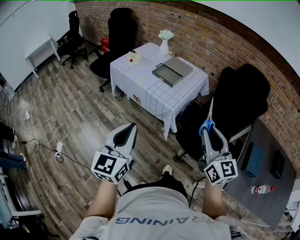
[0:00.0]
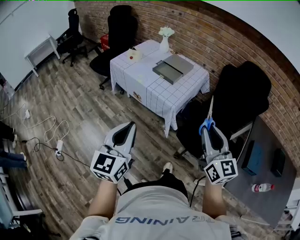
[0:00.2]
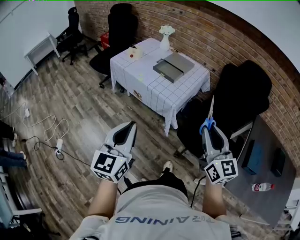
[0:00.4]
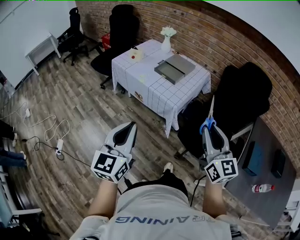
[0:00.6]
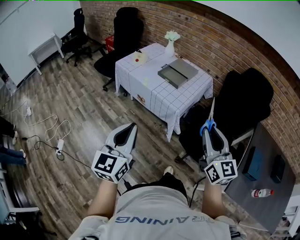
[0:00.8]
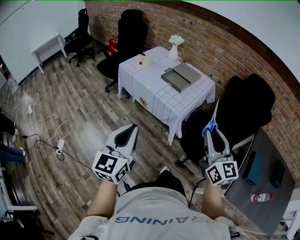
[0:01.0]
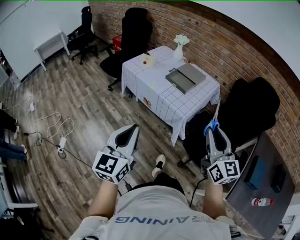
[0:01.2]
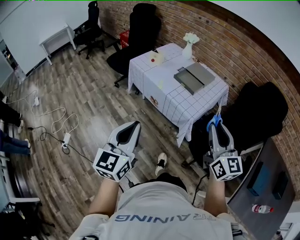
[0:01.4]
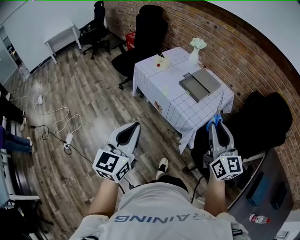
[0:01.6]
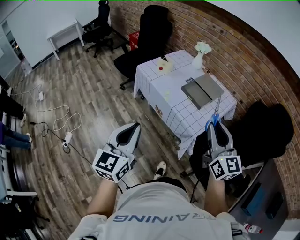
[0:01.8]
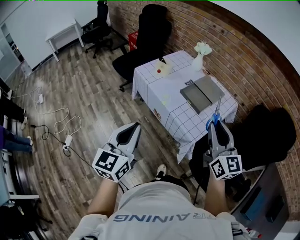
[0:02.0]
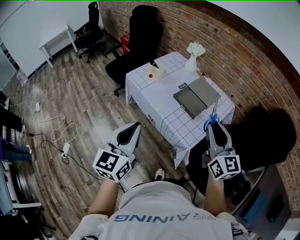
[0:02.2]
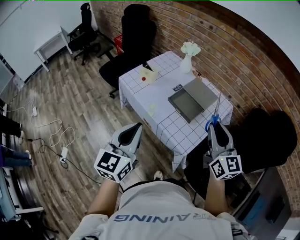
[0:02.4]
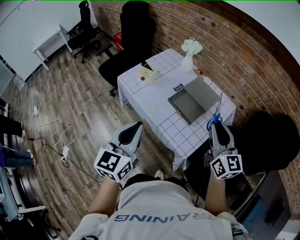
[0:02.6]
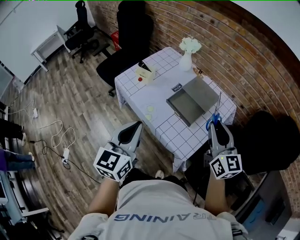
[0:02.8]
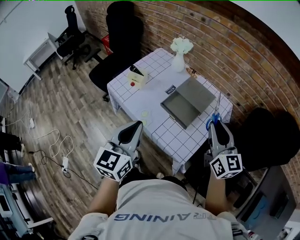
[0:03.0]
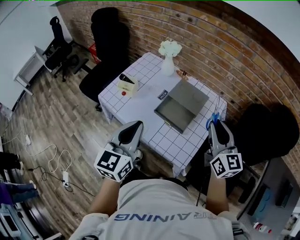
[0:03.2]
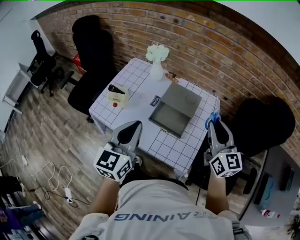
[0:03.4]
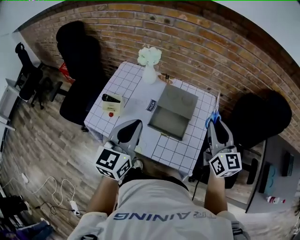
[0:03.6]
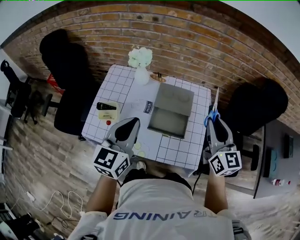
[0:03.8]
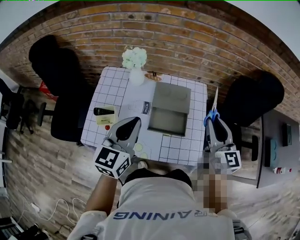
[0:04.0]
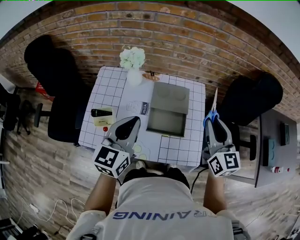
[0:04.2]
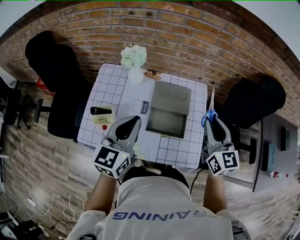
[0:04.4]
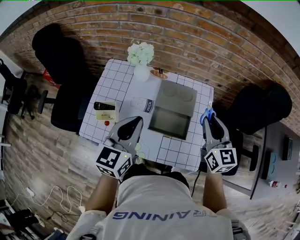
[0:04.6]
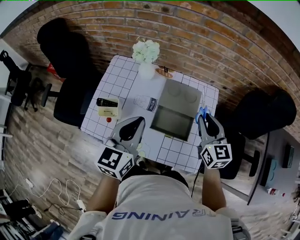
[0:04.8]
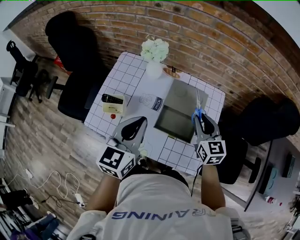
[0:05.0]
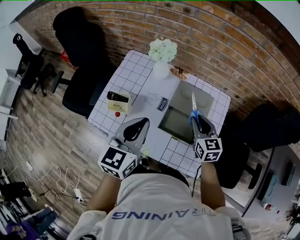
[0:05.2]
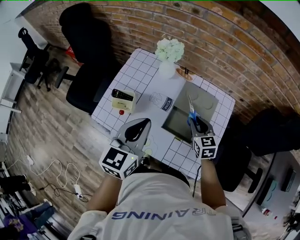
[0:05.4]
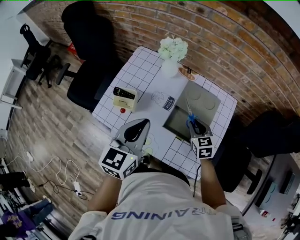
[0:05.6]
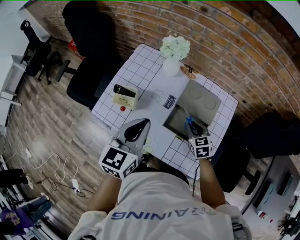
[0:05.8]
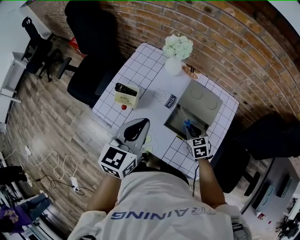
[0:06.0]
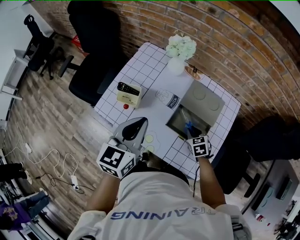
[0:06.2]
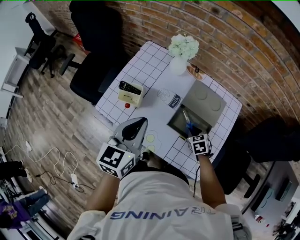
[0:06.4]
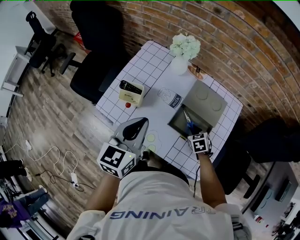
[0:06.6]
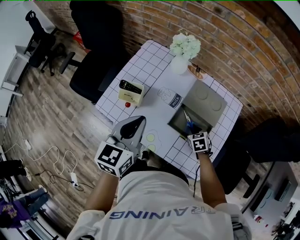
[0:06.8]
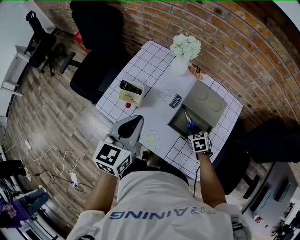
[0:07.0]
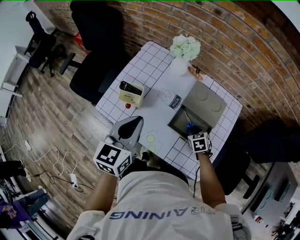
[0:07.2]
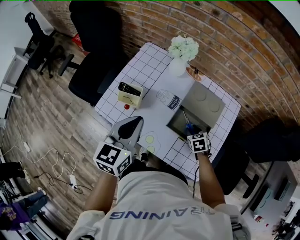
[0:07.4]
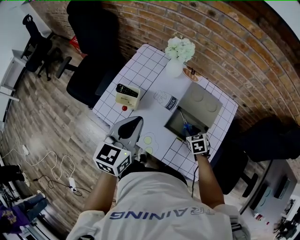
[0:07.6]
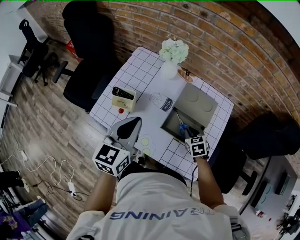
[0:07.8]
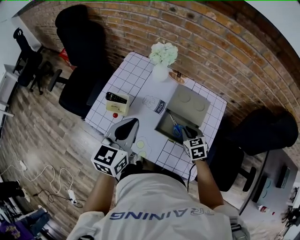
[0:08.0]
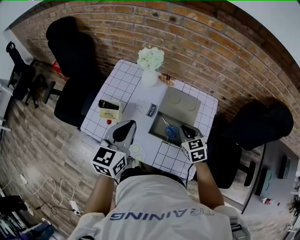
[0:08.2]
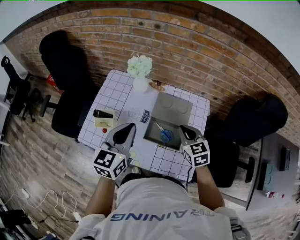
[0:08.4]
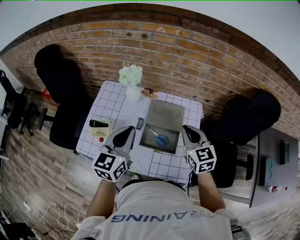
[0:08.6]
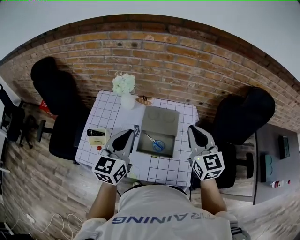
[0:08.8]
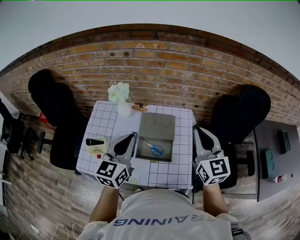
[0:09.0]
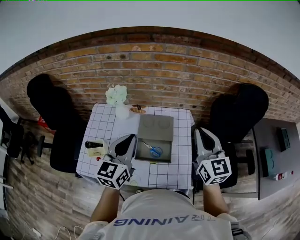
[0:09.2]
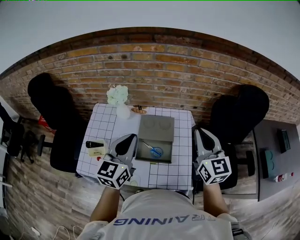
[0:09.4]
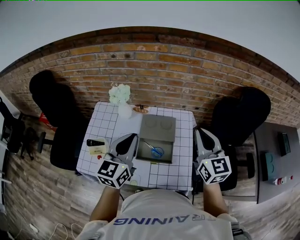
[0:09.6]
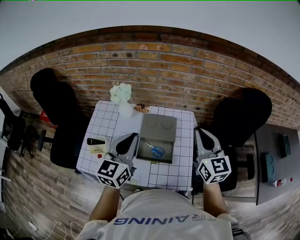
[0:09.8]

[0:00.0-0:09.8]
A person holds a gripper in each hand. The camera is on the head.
0:00.0 to 0:01.4: The left gripper is displaced to the left and forward by approximately 10 cm. The right gripper shifts about 10 cm forward and to the left.
0:01.4 to 0:02.8: Both grippers move forward, roughly 35 cm.
0:02.8 to 0:04.2: The left gripper shifts by roughly 30 cm, and turns by roughly 40 degrees; the right gripper moves approximately 10 cm, and changes its angle by approximately 40 degrees.
0:04.2 to 0:05.6: The right gripper heads downward, covering roughly 25 cm, and points its fingers some 30 degrees further downward.
0:05.6 to 0:07.0: The left gripper heads to the left, covering some 5 cm, while the right gripper travels downward by about 10 cm, and turns by approximately 20 degrees.
0:07.0 to 0:08.4: The right gripper travels upward by about 20 cm, turns by approximately 30 degrees, and closes up, while the left gripper goes roughly 10 cm to the right.
0:08.4 to 0:09.8: The left gripper shifts about 10 cm to the right and upward; the right gripper heads upward and to the right, covering about 20 cm, and changes its angle by approximately 30 degrees.

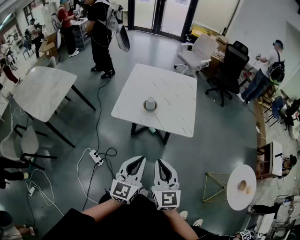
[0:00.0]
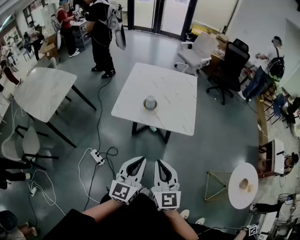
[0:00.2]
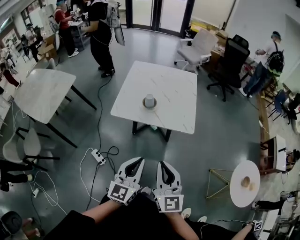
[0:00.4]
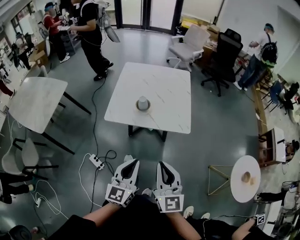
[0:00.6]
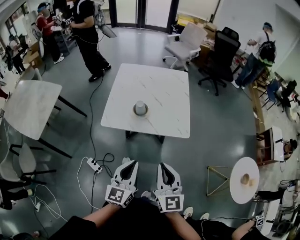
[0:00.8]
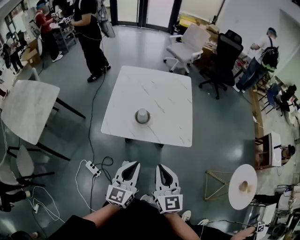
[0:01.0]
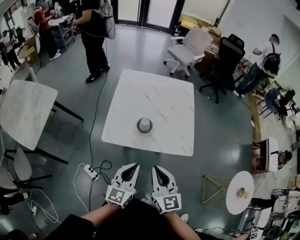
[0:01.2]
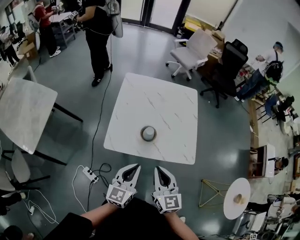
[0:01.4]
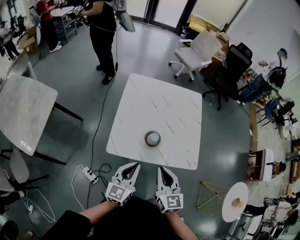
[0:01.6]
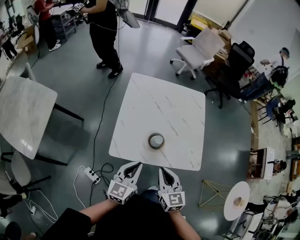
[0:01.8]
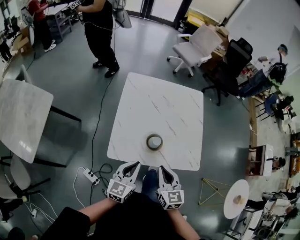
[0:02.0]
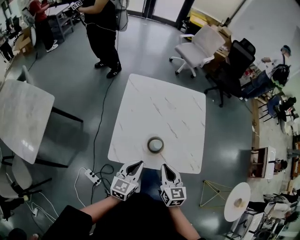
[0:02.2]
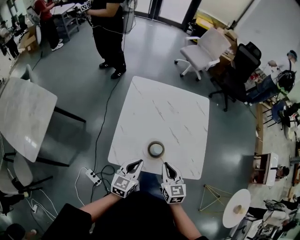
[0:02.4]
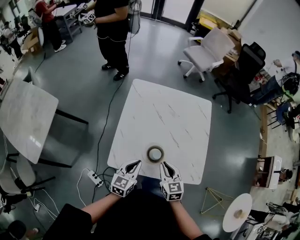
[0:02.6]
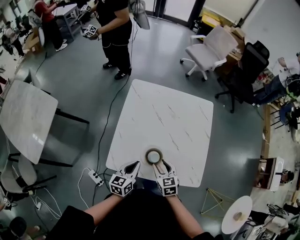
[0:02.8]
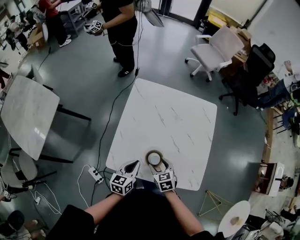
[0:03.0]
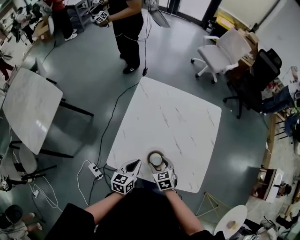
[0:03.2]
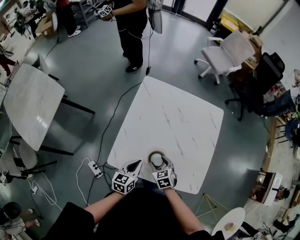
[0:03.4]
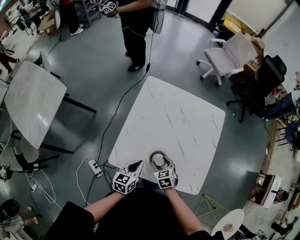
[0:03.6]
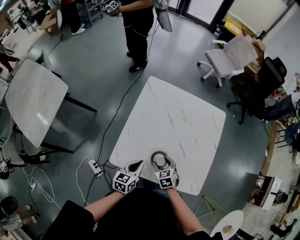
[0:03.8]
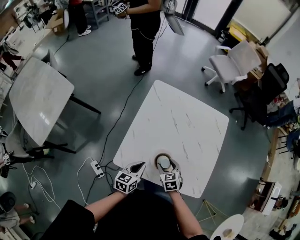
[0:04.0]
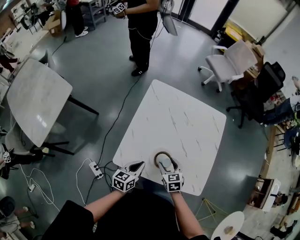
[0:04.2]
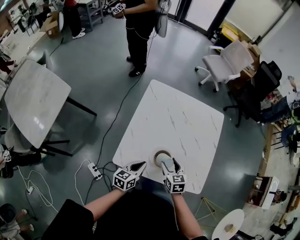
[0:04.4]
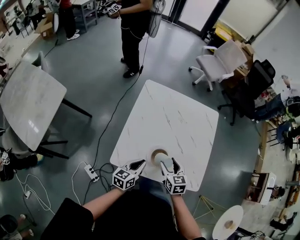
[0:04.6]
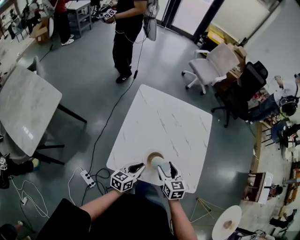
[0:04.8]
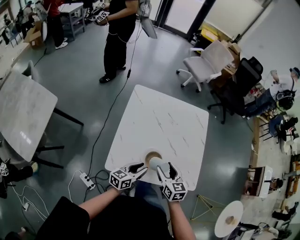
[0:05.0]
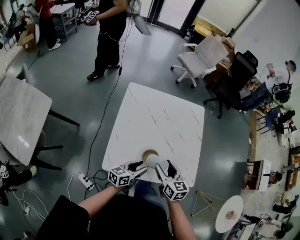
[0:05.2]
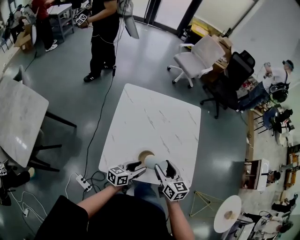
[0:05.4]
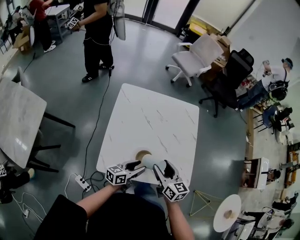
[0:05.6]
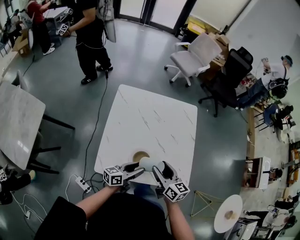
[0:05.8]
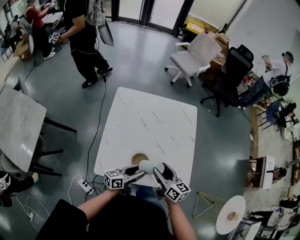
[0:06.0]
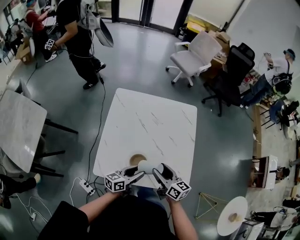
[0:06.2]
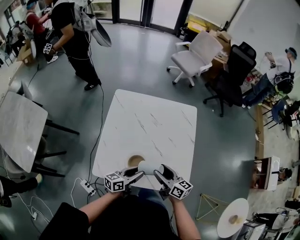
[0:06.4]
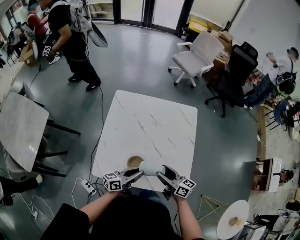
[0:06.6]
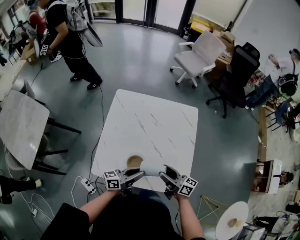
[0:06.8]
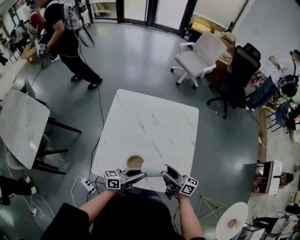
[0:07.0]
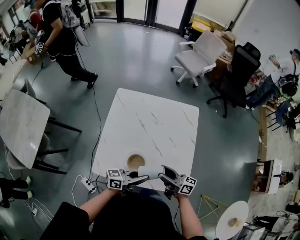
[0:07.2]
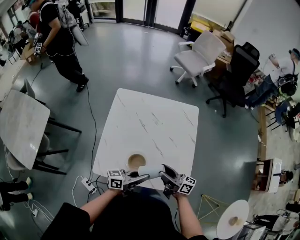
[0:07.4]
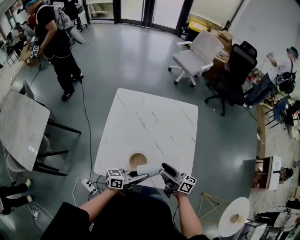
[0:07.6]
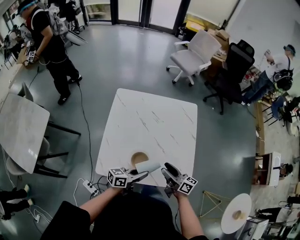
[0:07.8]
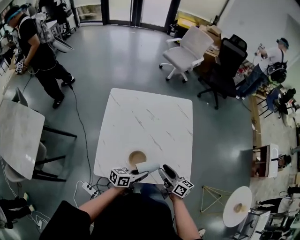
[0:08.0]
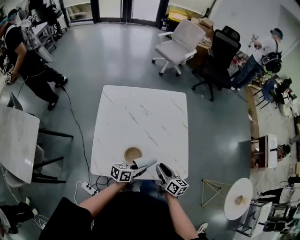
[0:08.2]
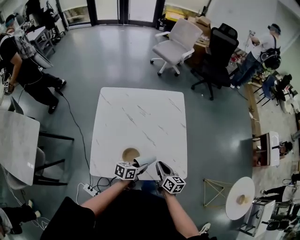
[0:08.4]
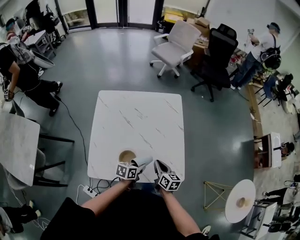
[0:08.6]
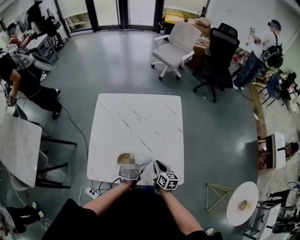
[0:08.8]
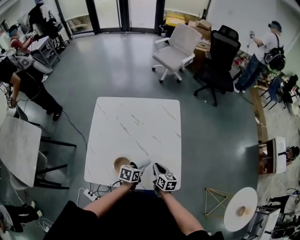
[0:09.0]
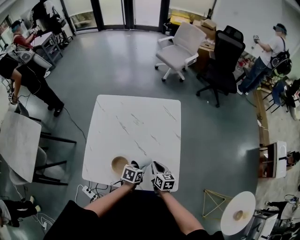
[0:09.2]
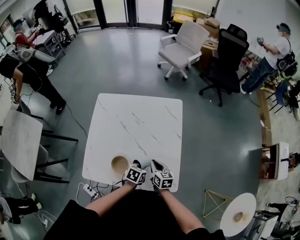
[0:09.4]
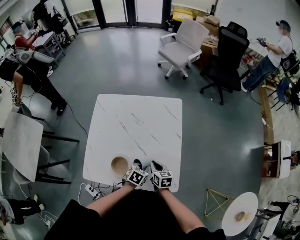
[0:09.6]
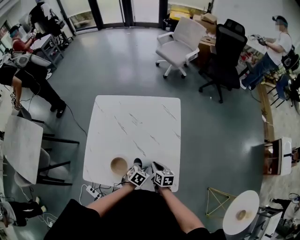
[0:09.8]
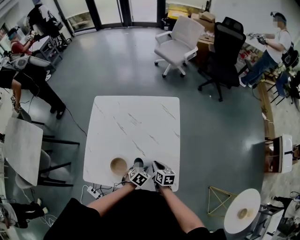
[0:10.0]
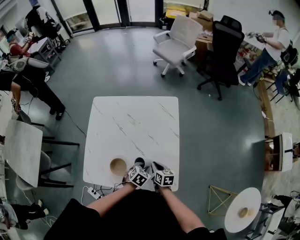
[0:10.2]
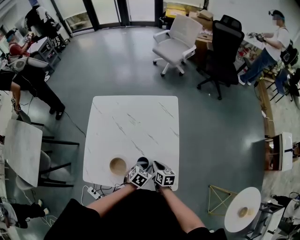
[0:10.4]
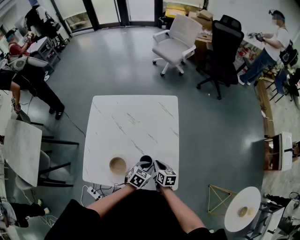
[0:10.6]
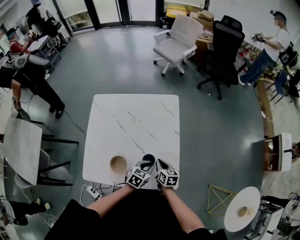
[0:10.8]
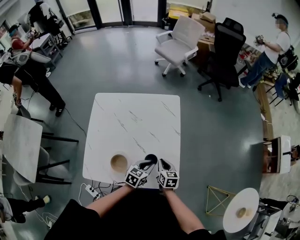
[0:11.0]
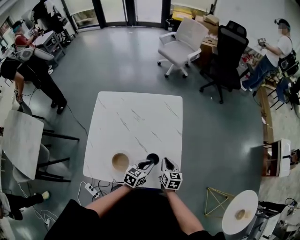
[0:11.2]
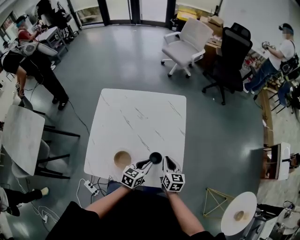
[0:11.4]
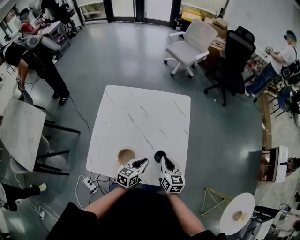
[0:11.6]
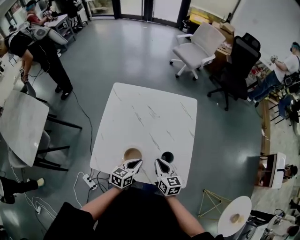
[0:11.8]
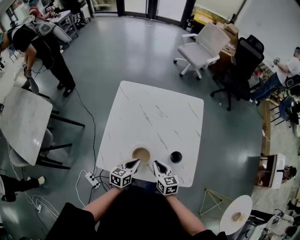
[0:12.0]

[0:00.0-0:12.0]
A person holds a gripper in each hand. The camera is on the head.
0:00.0 to 0:01.6: The left gripper moves forward and to the left, about 35 cm. The right gripper moves forward, roughly 30 cm.
0:01.6 to 0:03.0: The right gripper moves downward and forward, approximately 30 cm, points its fingers roughly 30 degrees further downward, and opens its fingers, while the left gripper moves forward and downward, approximately 20 cm, and changes its angle by roughly 20 degrees.
0:03.0 to 0:04.4: The grippers stay close to where they were, moving slightly.
0:04.4 to 0:06.0: The left gripper heads to the right, covering some 10 cm, swivels roughly 30 degrees, and opens, while the right gripper goes approximately 10 cm upward and to the right, and turns by some 40 degrees.
0:06.0 to 0:07.6: The right gripper ends up about 5 cm from where it was, and turns by approximately 30 degrees; the left gripper moves approximately 5 cm, and closes its fingers.
0:07.6 to 0:09.0: The left gripper heads downward, to the right and forward, covering roughly 15 cm, and angles its fingers downward, by roughly 50 degrees; the right gripper moves downward and to the right, approximately 15 cm, tilts its fingers roughly 40 degrees downward, and closes.
0:09.0 to 0:10.4: The left gripper moves to the right, about 5 cm, and swivels about 30 degrees.
0:10.4 to 0:12.0: The right gripper goes roughly 20 cm to the left, upward and backward, and swivels roughly 20 degrees; the left gripper goes some 20 cm to the left, and turns by approximately 40 degrees.

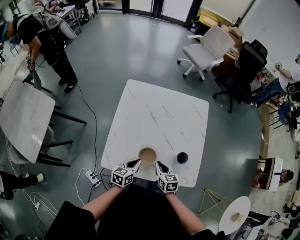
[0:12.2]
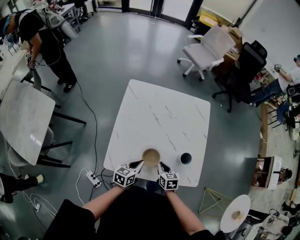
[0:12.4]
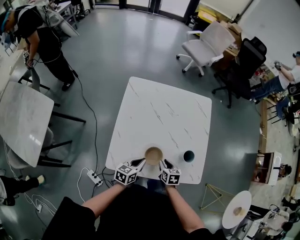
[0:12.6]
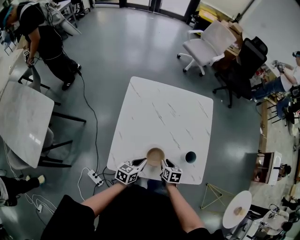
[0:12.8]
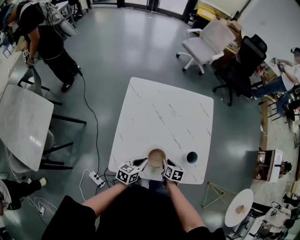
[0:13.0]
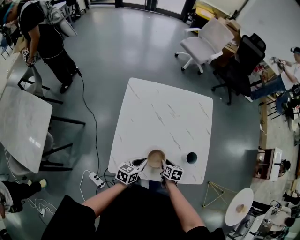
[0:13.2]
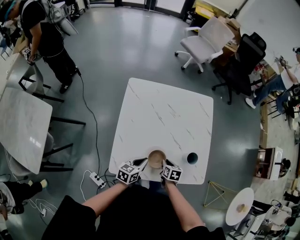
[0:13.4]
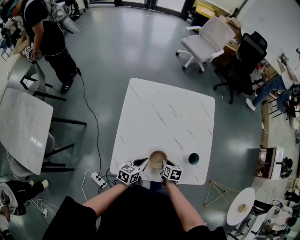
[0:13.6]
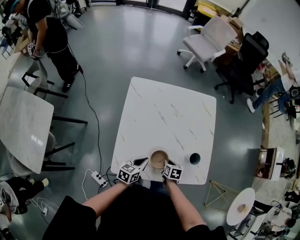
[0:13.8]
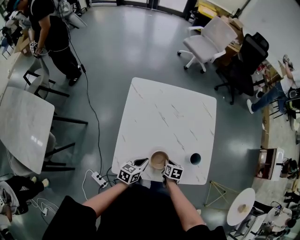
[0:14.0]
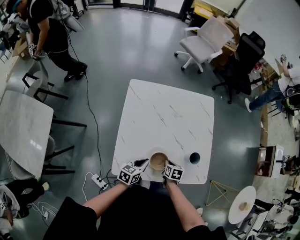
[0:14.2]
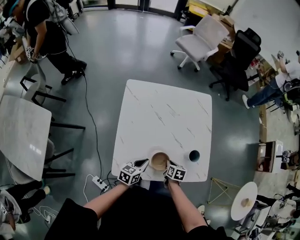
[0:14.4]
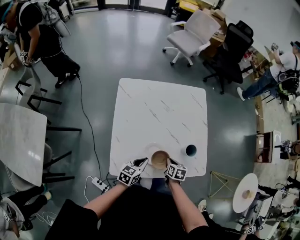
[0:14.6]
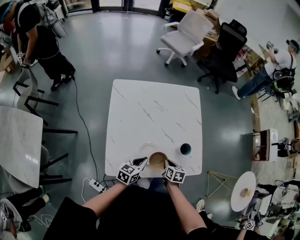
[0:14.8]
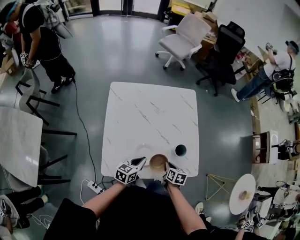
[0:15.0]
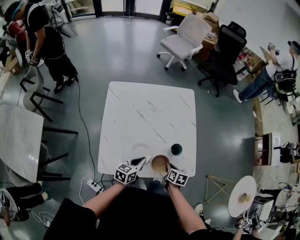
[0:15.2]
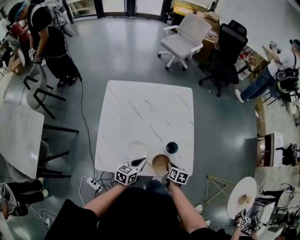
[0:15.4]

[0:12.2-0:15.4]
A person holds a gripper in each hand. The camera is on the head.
0:12.2 to 0:13.8: The right gripper travels downward by about 10 cm, and swivels approximately 30 degrees, while the left gripper changes place by roughly 5 cm.
0:13.8 to 0:15.4: The grippers both shift to the right by about 15 cm.
